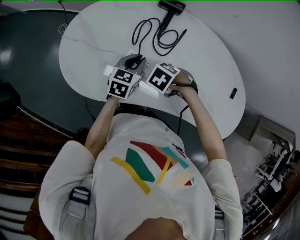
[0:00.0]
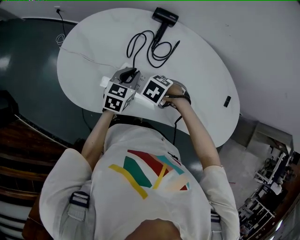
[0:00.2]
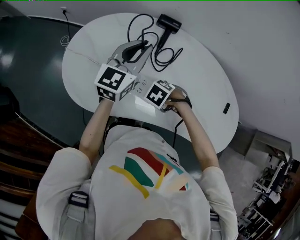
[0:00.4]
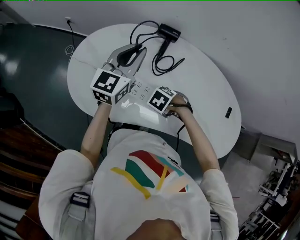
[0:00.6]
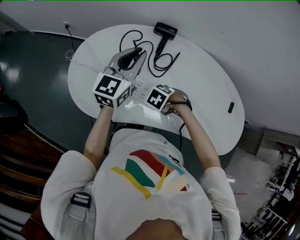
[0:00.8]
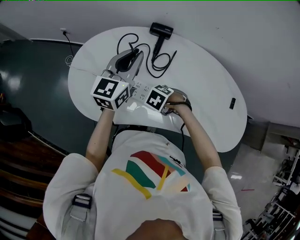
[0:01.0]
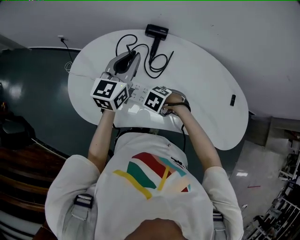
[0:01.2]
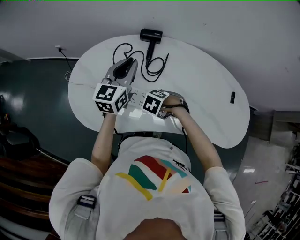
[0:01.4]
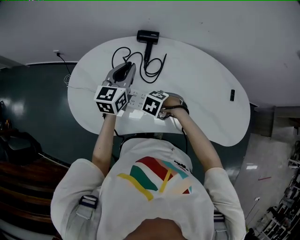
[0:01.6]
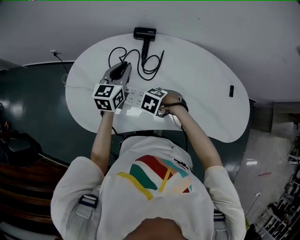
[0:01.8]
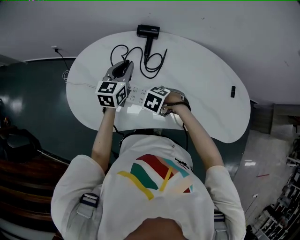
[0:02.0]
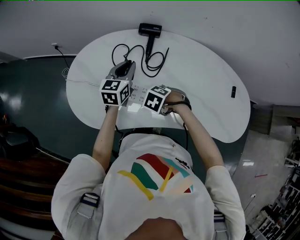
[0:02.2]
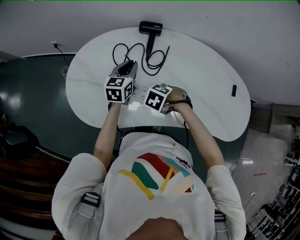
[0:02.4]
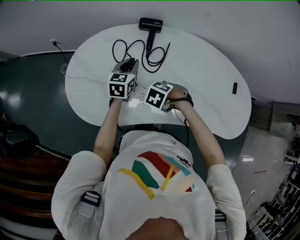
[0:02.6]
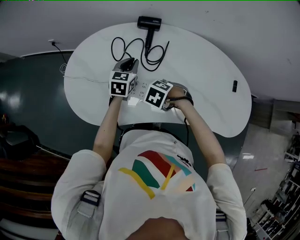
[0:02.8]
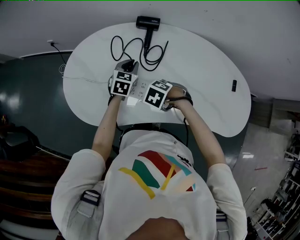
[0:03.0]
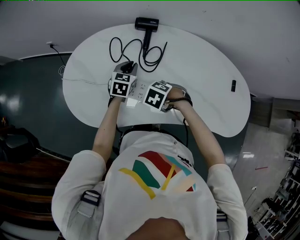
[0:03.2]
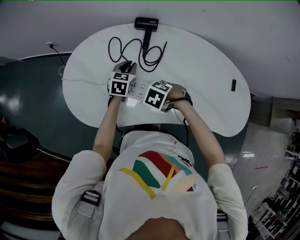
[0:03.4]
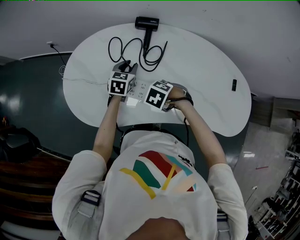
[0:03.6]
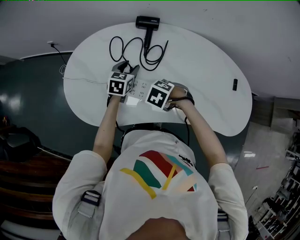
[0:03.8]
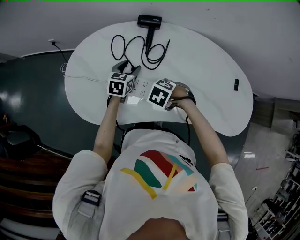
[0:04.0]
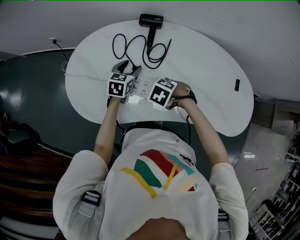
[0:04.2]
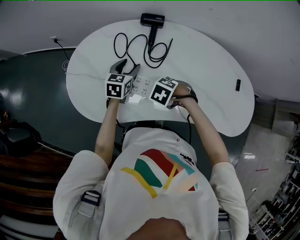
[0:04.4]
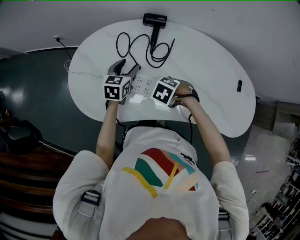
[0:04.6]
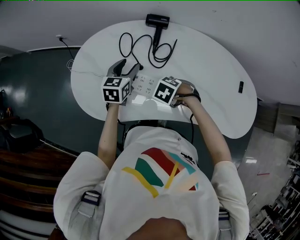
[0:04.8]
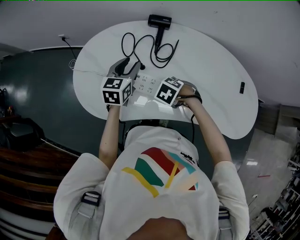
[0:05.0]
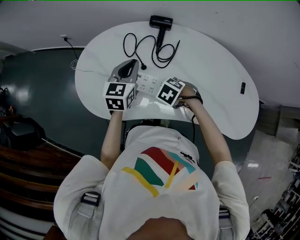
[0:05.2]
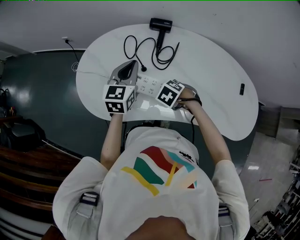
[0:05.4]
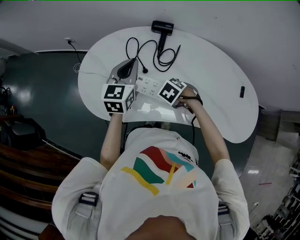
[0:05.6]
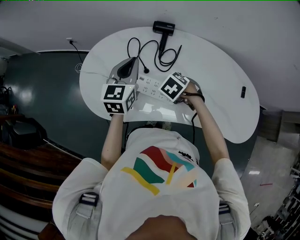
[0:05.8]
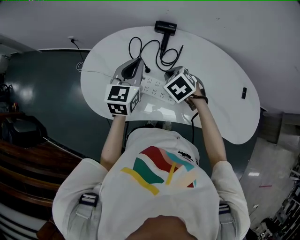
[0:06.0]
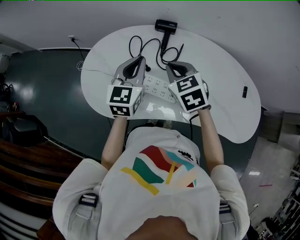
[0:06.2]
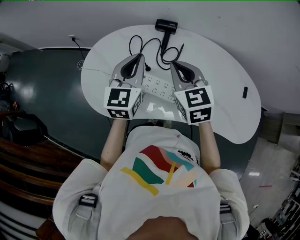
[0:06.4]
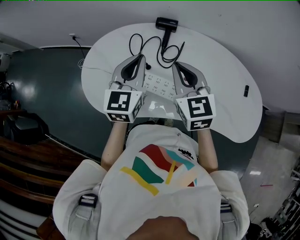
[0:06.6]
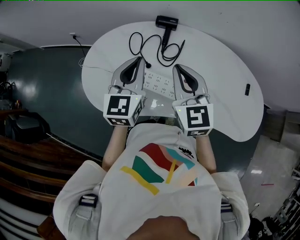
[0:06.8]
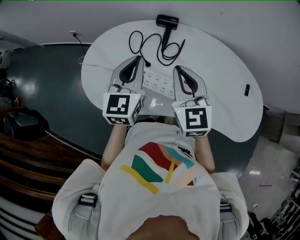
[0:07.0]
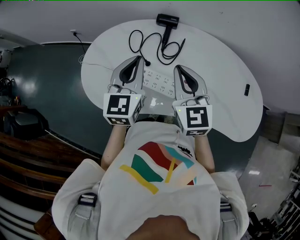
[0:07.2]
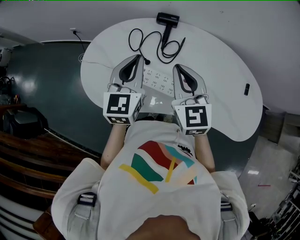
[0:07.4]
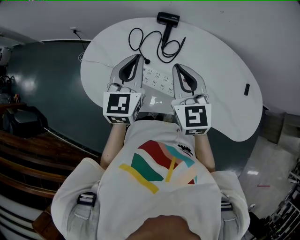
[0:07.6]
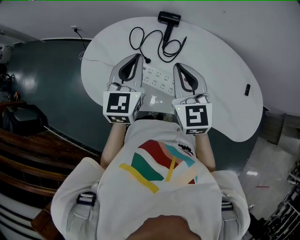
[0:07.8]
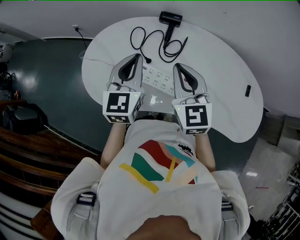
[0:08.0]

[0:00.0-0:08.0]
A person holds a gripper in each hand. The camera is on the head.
0:00.0 to 0:01.6: The left gripper is displaced upward by roughly 15 cm, and swivels roughly 20 degrees.
0:01.6 to 0:03.2: The left gripper moves downward, roughly 15 cm, and turns by roughly 30 degrees.
0:03.2 to 0:04.8: The left gripper moves roughly 10 cm, and opens up.
0:04.8 to 0:06.4: Both grippers travel together upward, some 20 cm. The right gripper tips its fingers upward by approximately 60 degrees, and closes its fingers. The left gripper turns by roughly 20 degrees, and closes up.
0:06.4 to 0:08.0: The grippers make only small movements.

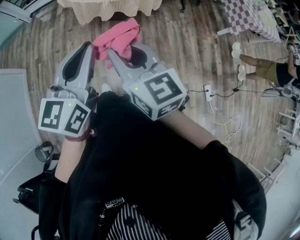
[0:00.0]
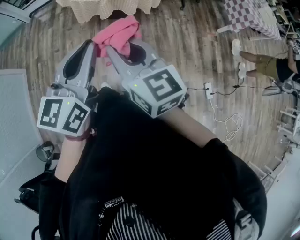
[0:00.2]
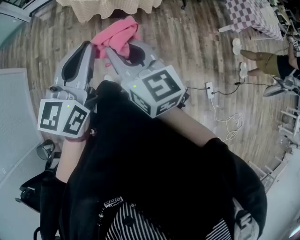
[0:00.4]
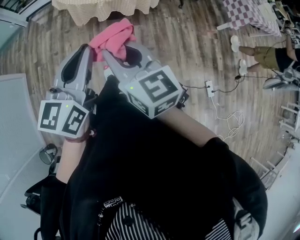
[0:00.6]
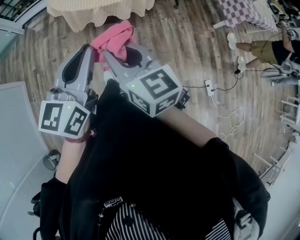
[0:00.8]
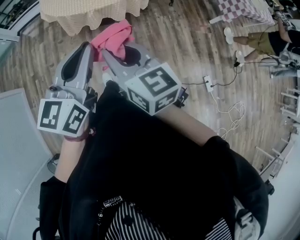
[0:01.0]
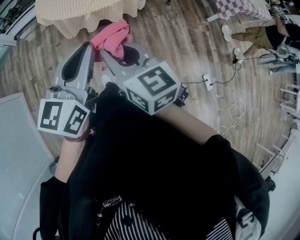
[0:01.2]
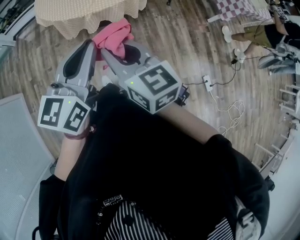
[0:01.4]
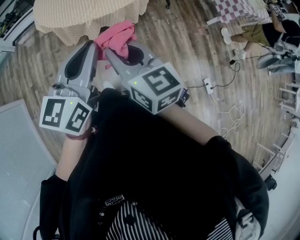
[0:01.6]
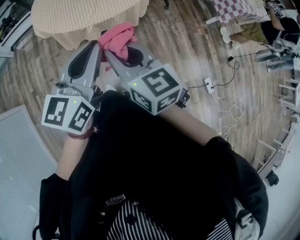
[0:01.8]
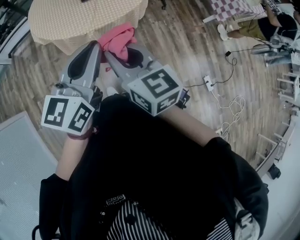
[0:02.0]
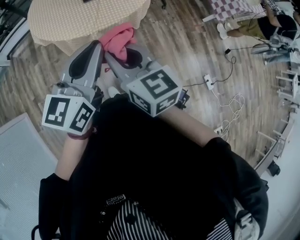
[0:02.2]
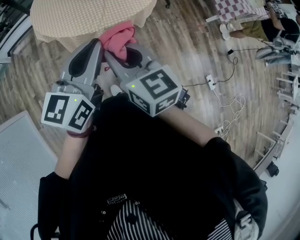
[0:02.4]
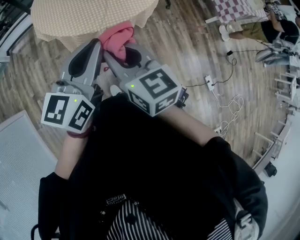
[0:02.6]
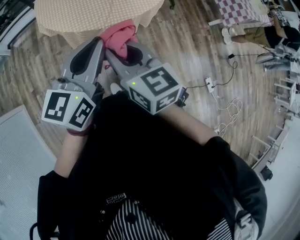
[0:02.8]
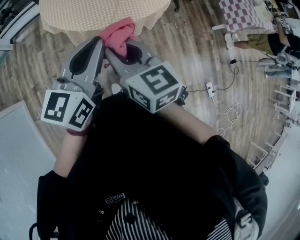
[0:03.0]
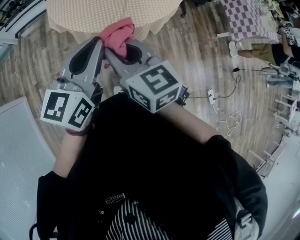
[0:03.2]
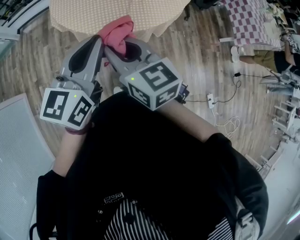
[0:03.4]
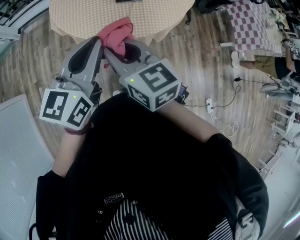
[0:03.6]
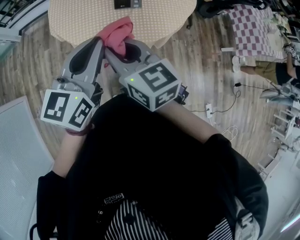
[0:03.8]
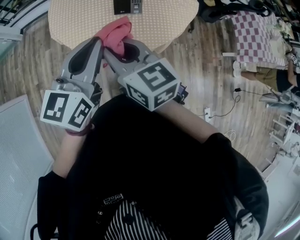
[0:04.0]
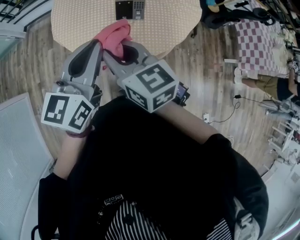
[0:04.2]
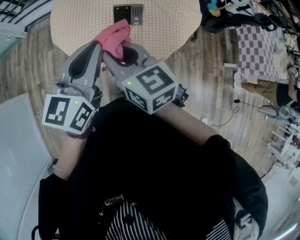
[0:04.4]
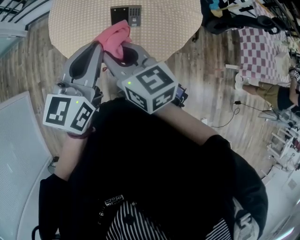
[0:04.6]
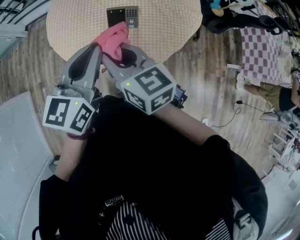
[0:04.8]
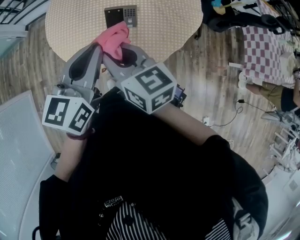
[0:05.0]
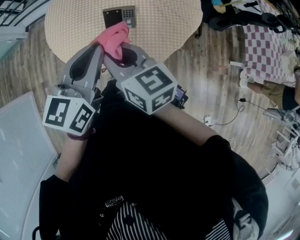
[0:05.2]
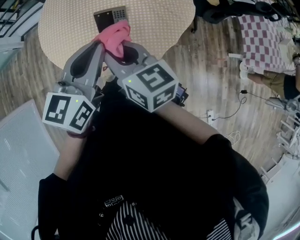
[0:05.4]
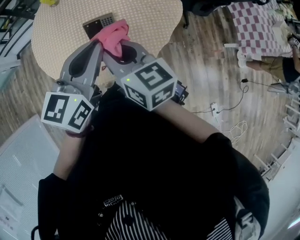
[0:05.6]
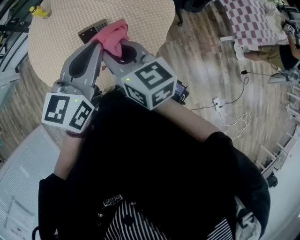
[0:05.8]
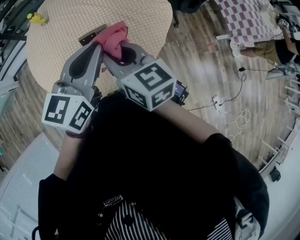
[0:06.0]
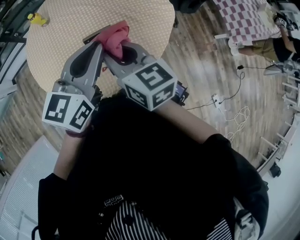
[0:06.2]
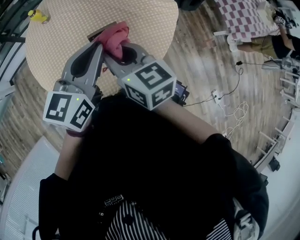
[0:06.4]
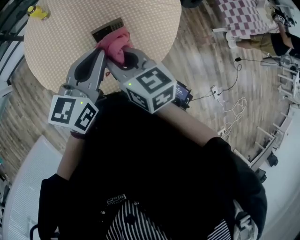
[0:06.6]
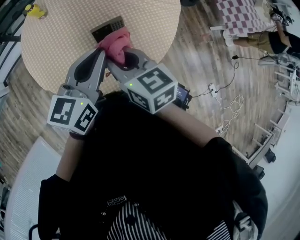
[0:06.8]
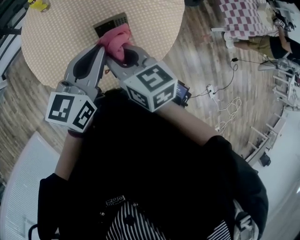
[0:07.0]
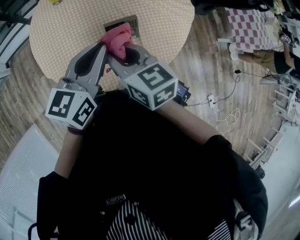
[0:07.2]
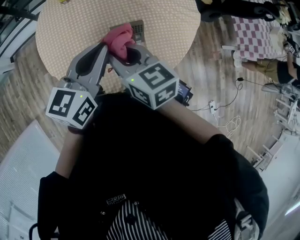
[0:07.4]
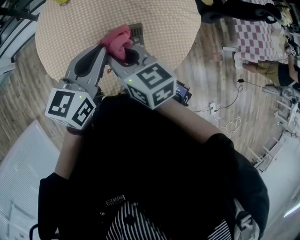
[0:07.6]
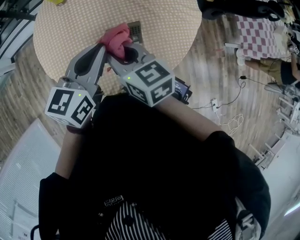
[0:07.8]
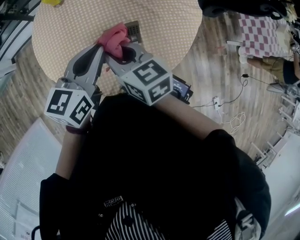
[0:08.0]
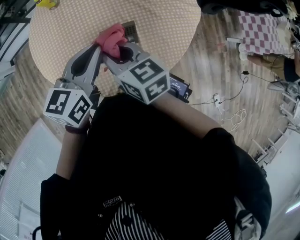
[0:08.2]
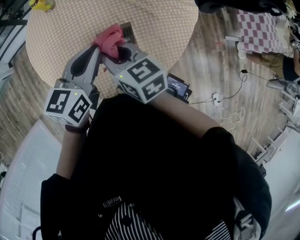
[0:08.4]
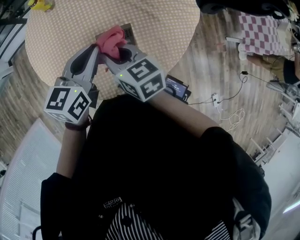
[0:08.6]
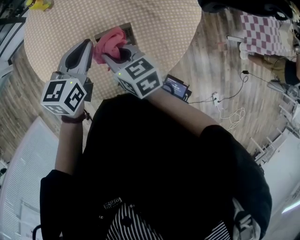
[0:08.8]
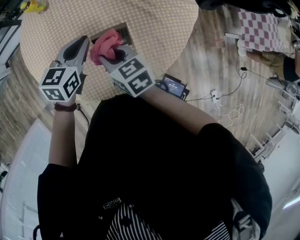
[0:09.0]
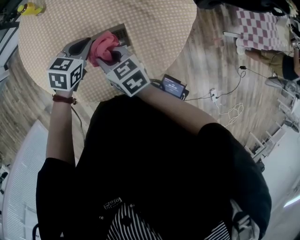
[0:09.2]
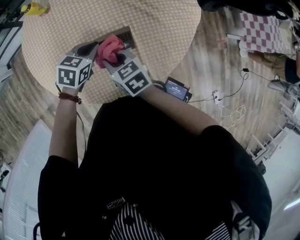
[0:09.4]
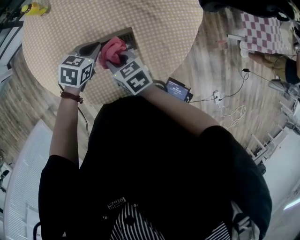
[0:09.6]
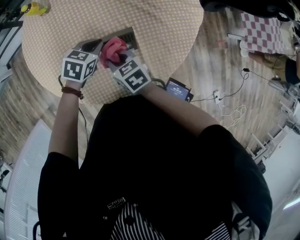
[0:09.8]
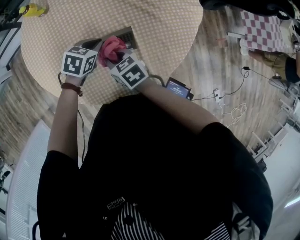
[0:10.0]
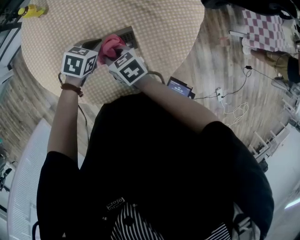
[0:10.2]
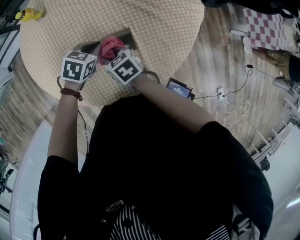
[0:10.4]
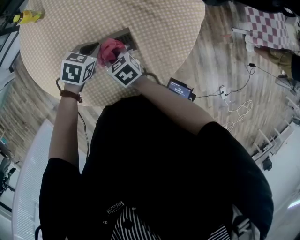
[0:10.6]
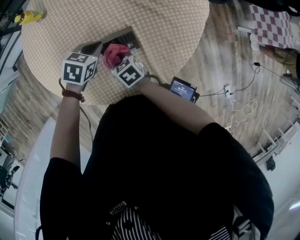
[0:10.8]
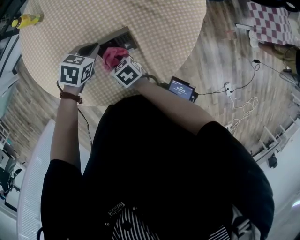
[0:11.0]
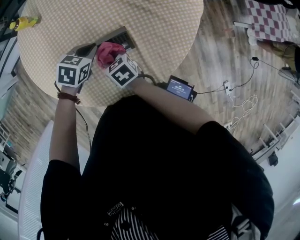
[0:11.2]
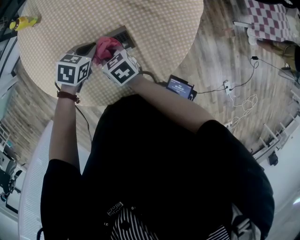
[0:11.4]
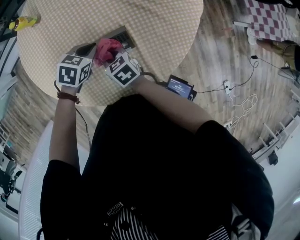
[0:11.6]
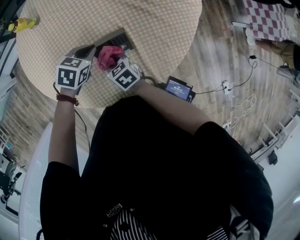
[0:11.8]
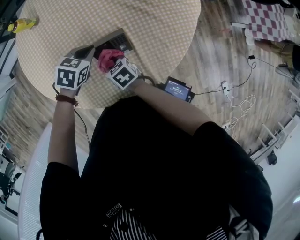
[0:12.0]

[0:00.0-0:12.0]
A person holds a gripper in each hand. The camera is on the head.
0:00.0 to 0:01.6: The two grippers go approximately 20 cm forward.
0:01.6 to 0:03.0: Both grippers travel together to the left and forward, about 20 cm.
0:03.0 to 0:04.4: The grippers both shift forward by some 25 cm.
0:04.4 to 0:06.0: Both grippers move to the right and forward, approximately 20 cm. The left gripper turns by roughly 20 degrees.
0:06.0 to 0:07.6: Both grippers travel together to the left, some 15 cm.
0:07.6 to 0:09.0: The left gripper moves downward and forward, roughly 15 cm. The right gripper travels downward by approximately 15 cm.
0:09.0 to 0:10.4: Both grippers move downward, approximately 10 cm. The left gripper swivels about 30 degrees.
0:10.4 to 0:12.0: The right gripper swings up and down, some 5 cm each way, with 2 reversals.

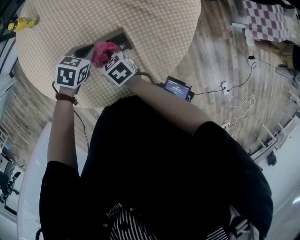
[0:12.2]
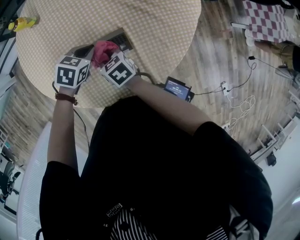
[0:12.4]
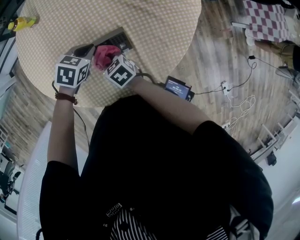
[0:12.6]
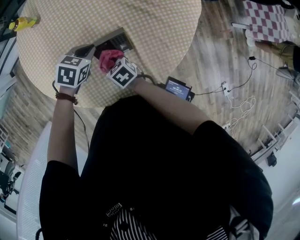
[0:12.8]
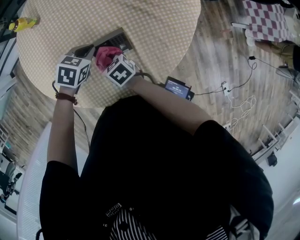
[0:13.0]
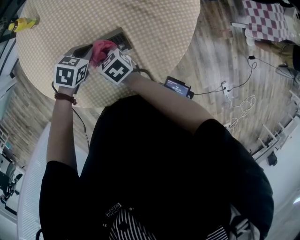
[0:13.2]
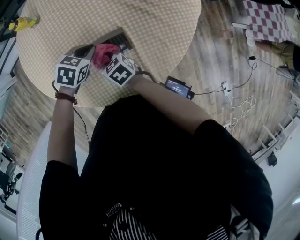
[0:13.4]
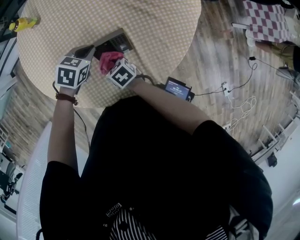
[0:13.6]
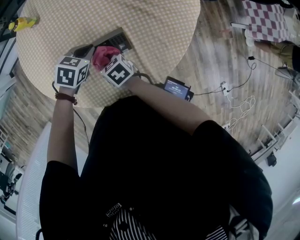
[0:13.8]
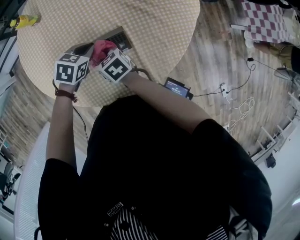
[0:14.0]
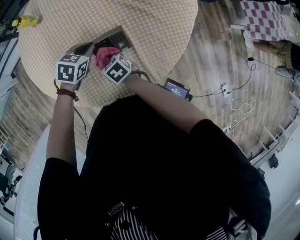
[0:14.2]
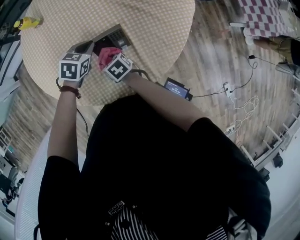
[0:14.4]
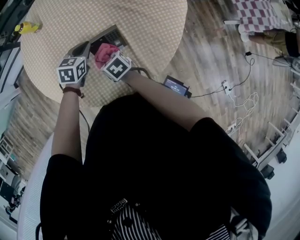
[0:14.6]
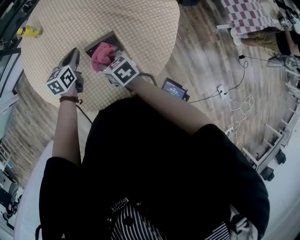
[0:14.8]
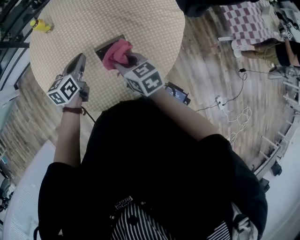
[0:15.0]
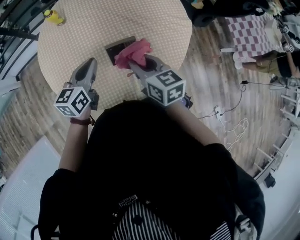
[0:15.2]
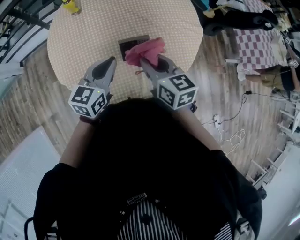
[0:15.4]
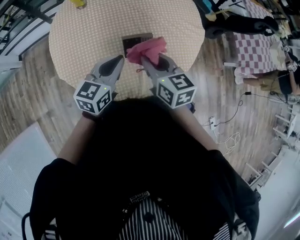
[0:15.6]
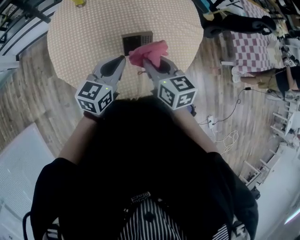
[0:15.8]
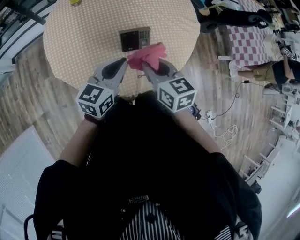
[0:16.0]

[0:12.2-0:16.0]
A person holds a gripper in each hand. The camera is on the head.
0:13.4 to 0:14.8: The left gripper shifts roughly 5 cm upward, and turns by some 40 degrees. Meanwhile the right gripper moves up and down over roughly 10 cm, changing direction 3 times.
0:14.8 to 0:16.0: The right gripper travels upward and backward by about 20 cm. The left gripper shifts some 20 cm backward and upward, and turns by about 20 degrees.
